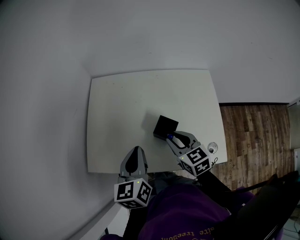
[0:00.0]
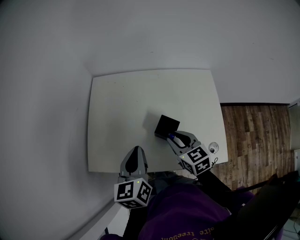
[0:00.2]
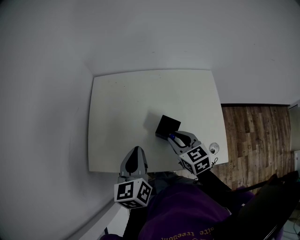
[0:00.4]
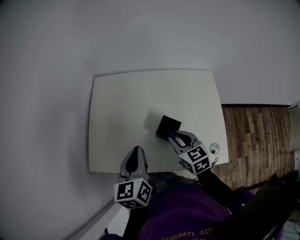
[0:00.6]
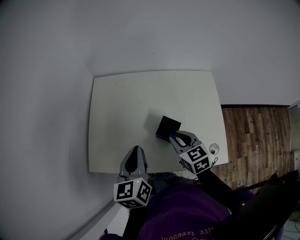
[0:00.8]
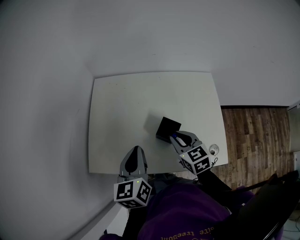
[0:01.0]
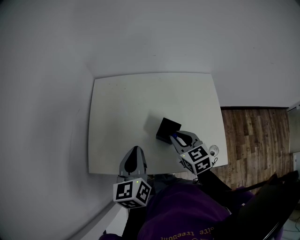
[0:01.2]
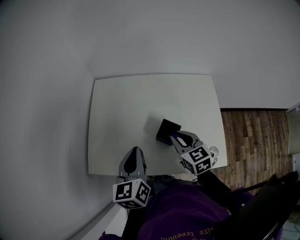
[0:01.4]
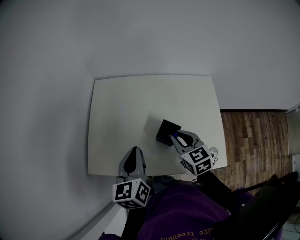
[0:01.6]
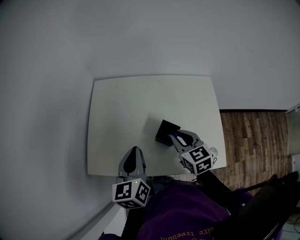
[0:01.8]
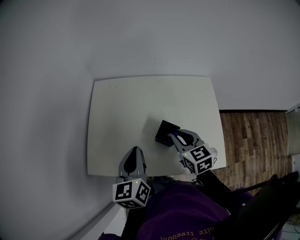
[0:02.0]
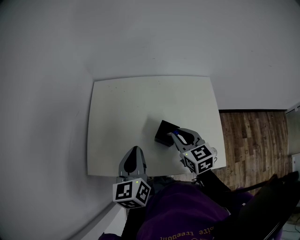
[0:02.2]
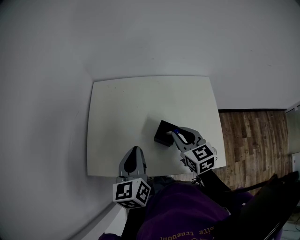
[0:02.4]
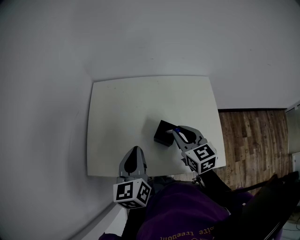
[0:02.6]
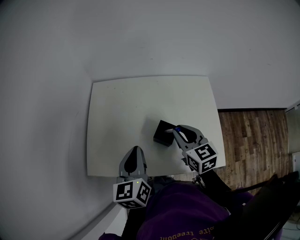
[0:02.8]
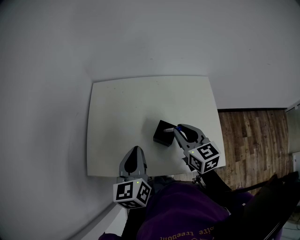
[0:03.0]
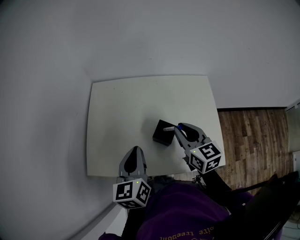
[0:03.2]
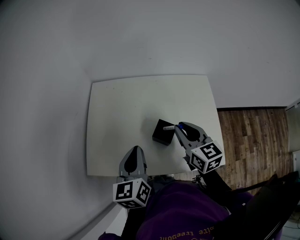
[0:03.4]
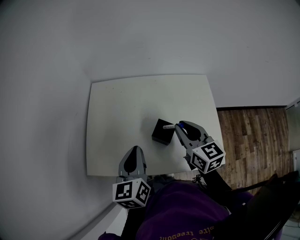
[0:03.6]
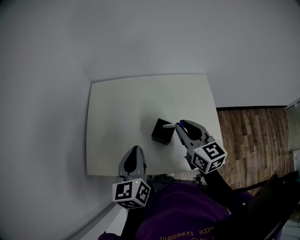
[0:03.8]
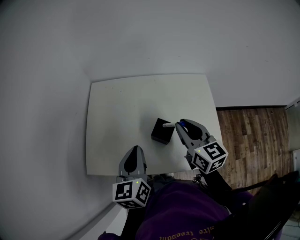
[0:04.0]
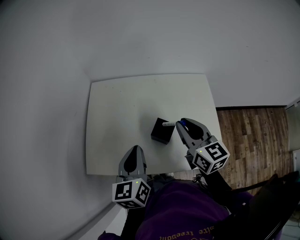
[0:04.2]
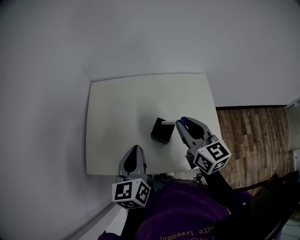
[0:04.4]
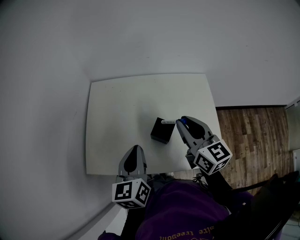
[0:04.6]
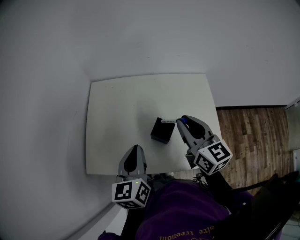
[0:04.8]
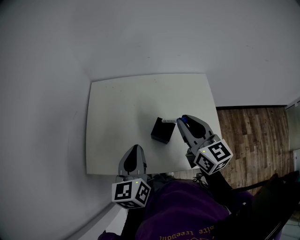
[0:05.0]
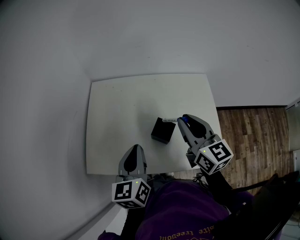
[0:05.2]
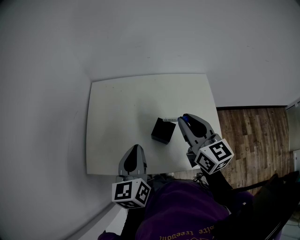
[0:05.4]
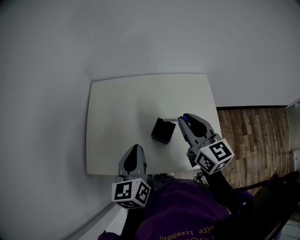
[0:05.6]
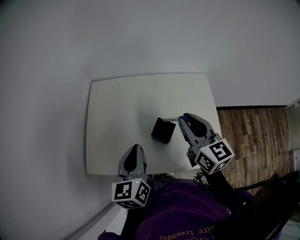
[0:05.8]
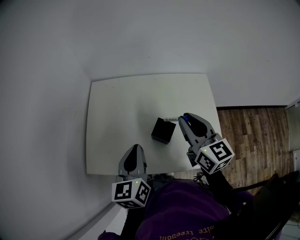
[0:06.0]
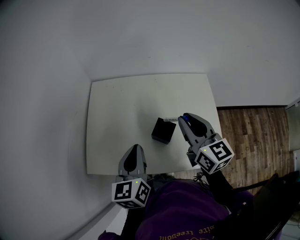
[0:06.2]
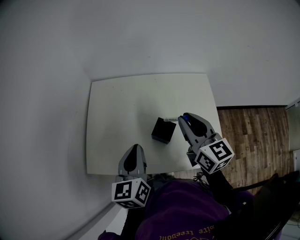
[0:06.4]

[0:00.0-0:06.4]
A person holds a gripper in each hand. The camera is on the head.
0:00.0 to 0:01.6: The grippers make only small movements.
0:01.6 to 0:03.2: The right gripper moves upward, about 5 cm.
0:03.2 to 0:04.8: The right gripper shifts some 5 cm upward.
0:04.8 to 0:06.4: Both grippers stay put.

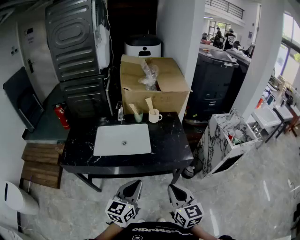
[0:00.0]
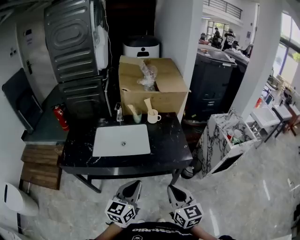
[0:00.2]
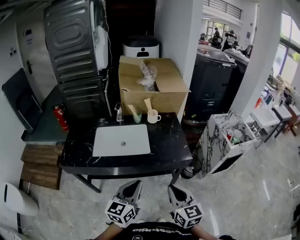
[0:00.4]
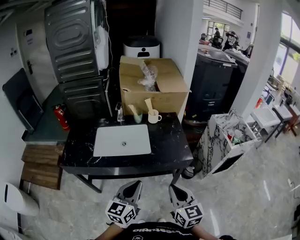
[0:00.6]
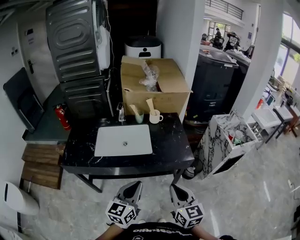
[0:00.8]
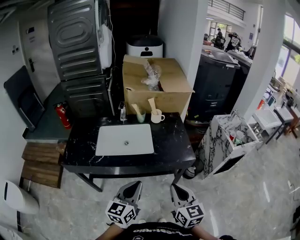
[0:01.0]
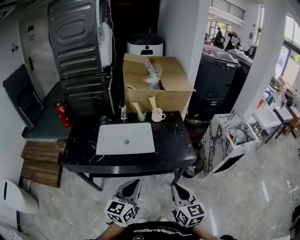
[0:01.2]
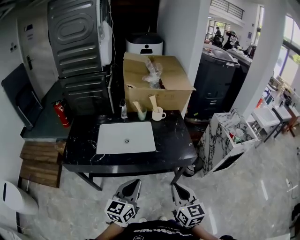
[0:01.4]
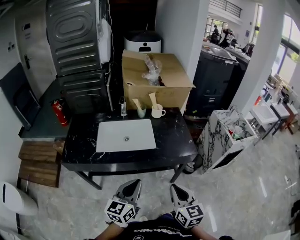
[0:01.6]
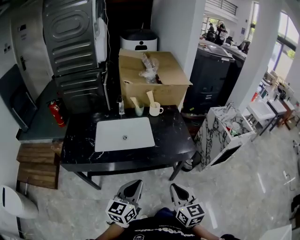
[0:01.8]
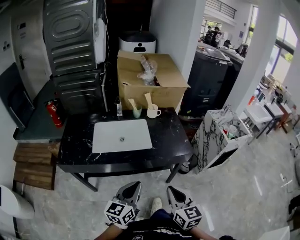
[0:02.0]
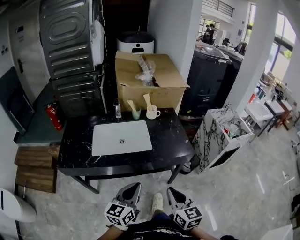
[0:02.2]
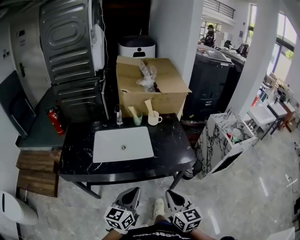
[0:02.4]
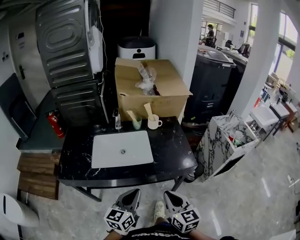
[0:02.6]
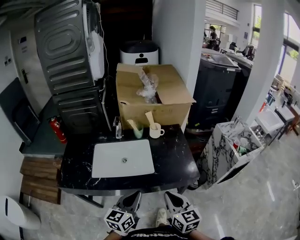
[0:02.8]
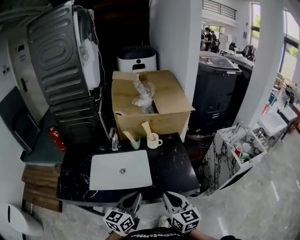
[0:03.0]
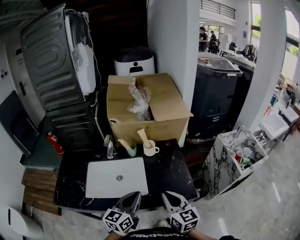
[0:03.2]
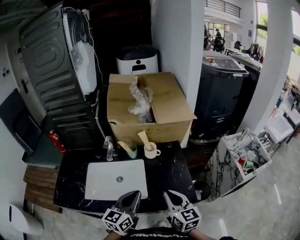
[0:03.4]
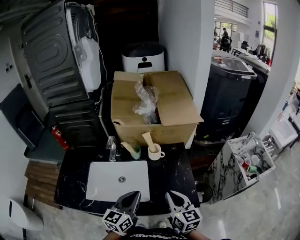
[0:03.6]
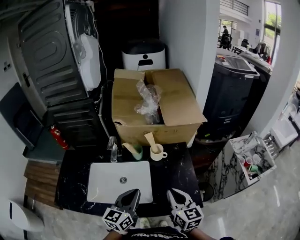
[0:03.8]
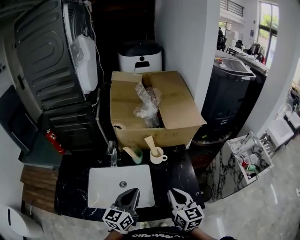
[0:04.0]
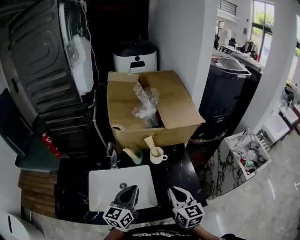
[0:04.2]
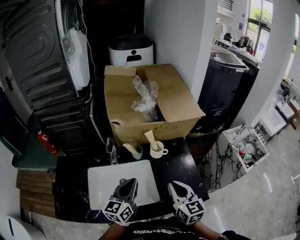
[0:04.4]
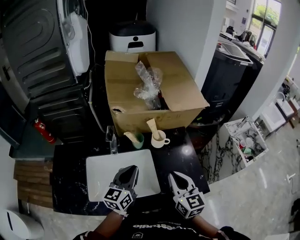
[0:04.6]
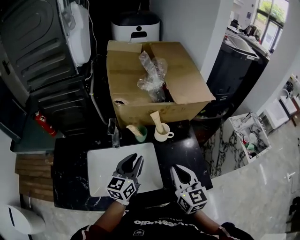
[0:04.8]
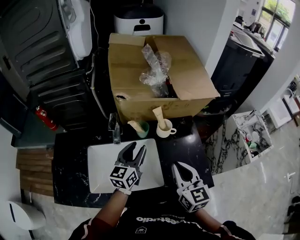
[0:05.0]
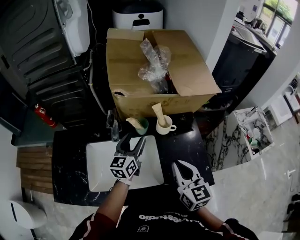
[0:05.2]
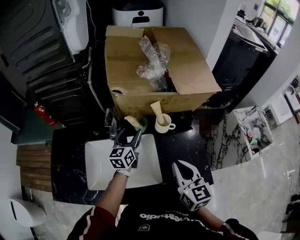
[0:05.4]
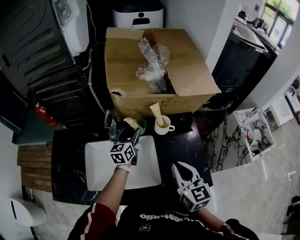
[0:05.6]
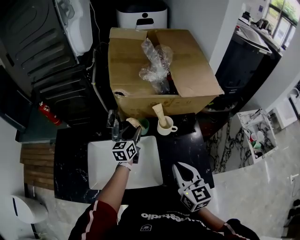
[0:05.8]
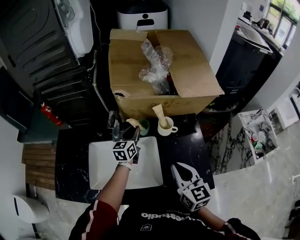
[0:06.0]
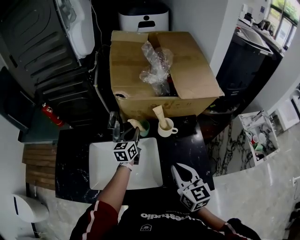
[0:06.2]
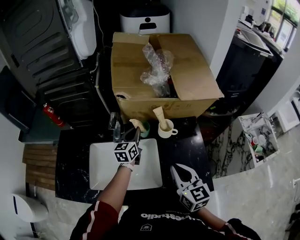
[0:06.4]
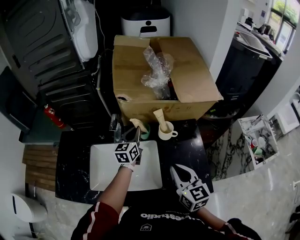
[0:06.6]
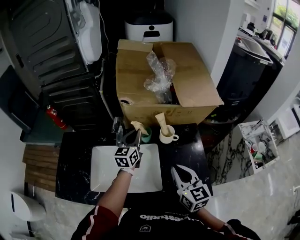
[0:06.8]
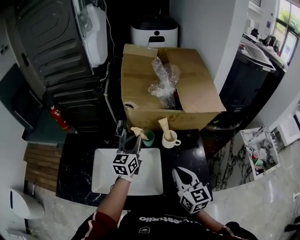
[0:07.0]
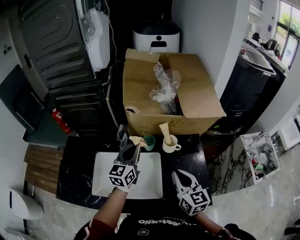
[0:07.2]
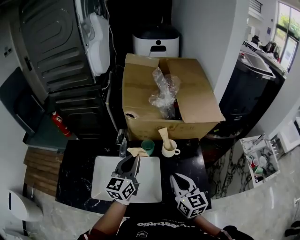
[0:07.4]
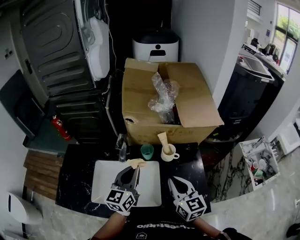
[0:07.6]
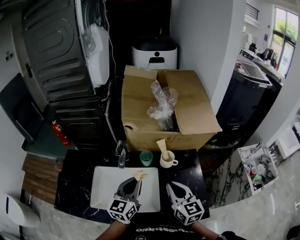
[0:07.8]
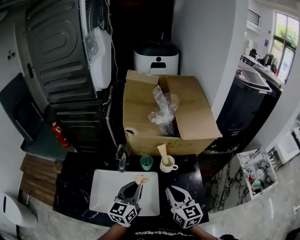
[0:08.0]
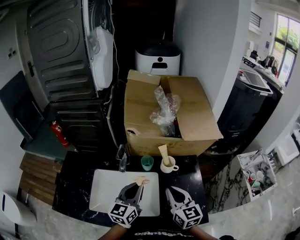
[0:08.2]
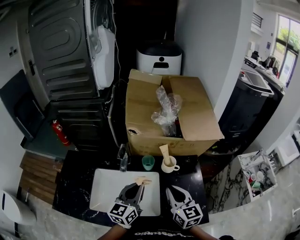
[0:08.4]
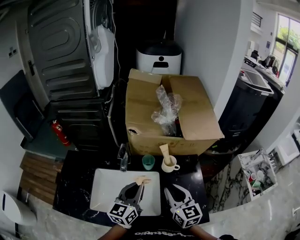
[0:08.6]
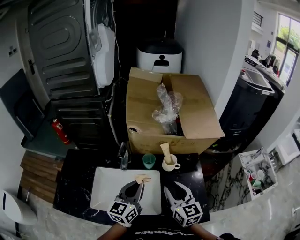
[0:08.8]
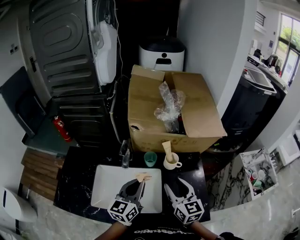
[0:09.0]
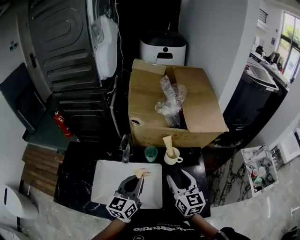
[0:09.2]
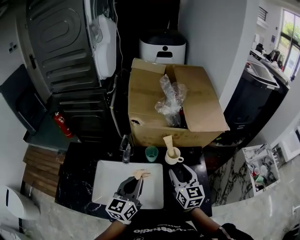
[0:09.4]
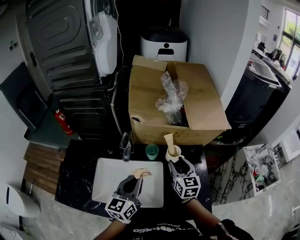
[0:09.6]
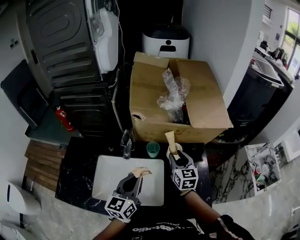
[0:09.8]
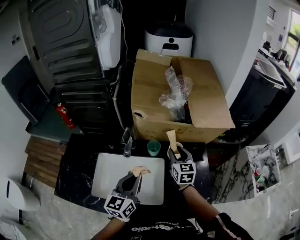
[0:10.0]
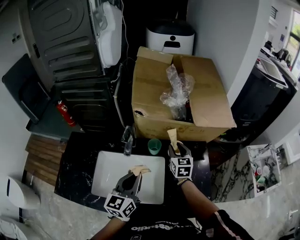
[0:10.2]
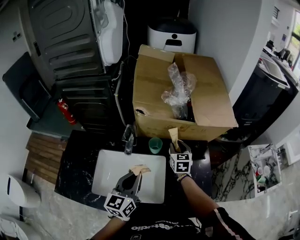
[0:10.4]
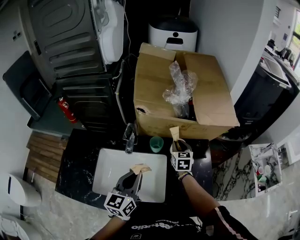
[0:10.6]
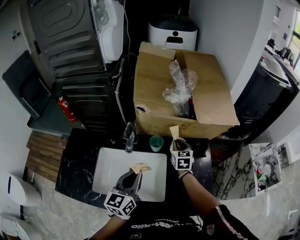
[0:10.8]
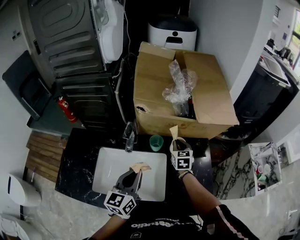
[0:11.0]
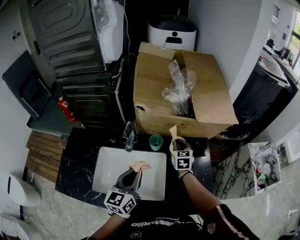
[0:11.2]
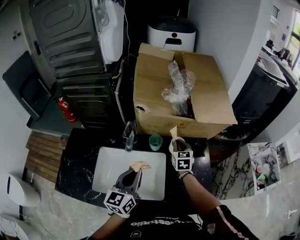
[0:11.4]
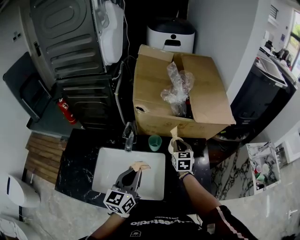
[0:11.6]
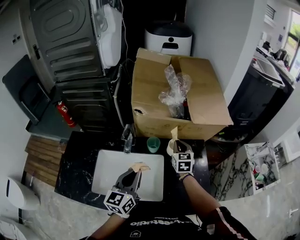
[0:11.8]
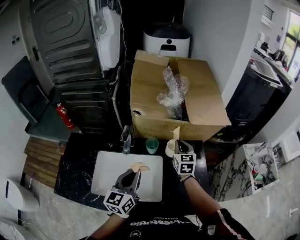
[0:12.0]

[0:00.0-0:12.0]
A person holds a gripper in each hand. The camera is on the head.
0:00.0 to 0:01.6: The left gripper is displaced to the left by approximately 5 cm.
0:01.6 to 0:03.0: Both grippers move forward, approximately 20 cm.
0:03.0 to 0:04.4: Both grippers move forward, some 20 cm.
0:04.4 to 0:06.0: The left gripper moves forward and downward, some 25 cm, and opens, then closes again.
0:06.0 to 0:07.6: The left gripper goes approximately 20 cm backward and upward.
0:07.6 to 0:09.0: The right gripper opens up.
0:09.0 to 0:10.4: The right gripper shifts about 25 cm forward and downward.
0:10.4 to 0:12.0: The right gripper heads upward, covering about 5 cm, and closes its fingers.

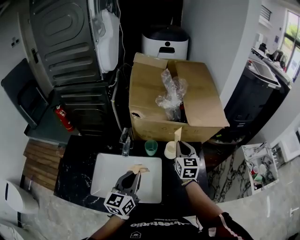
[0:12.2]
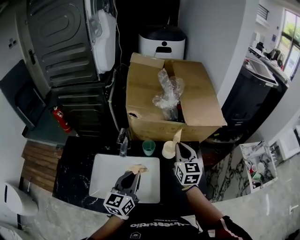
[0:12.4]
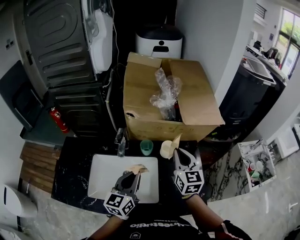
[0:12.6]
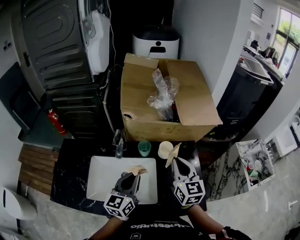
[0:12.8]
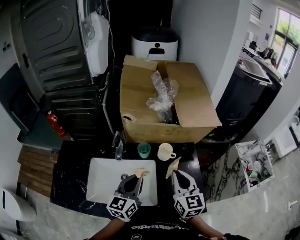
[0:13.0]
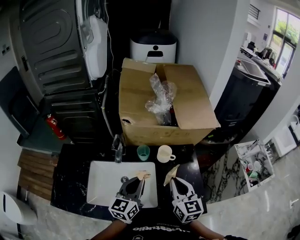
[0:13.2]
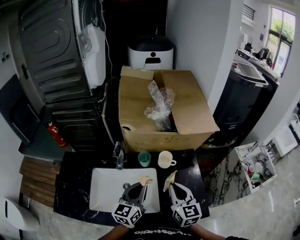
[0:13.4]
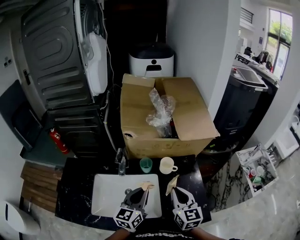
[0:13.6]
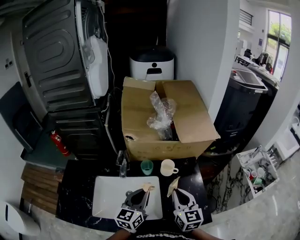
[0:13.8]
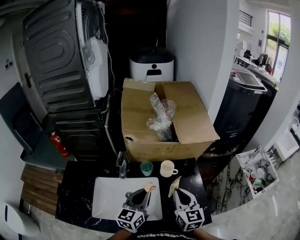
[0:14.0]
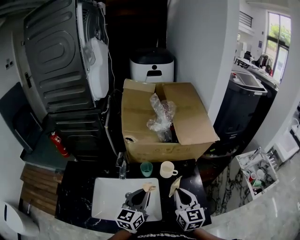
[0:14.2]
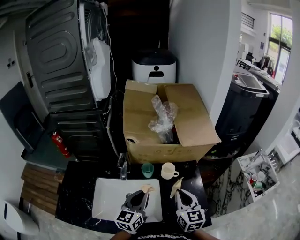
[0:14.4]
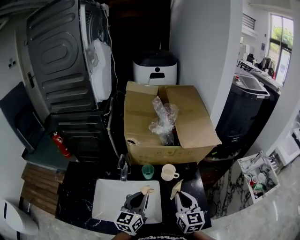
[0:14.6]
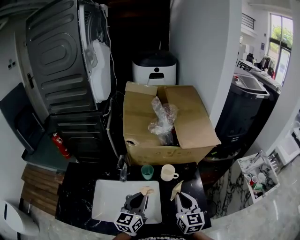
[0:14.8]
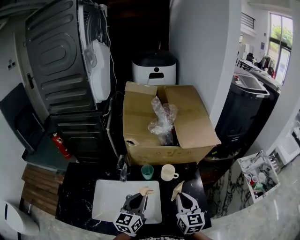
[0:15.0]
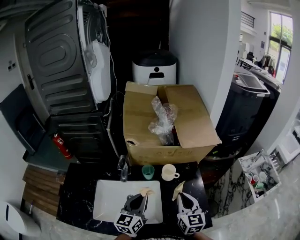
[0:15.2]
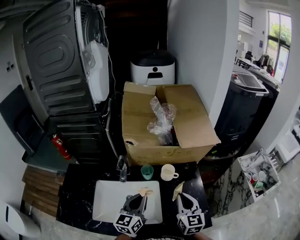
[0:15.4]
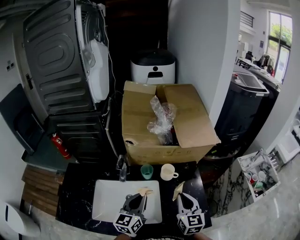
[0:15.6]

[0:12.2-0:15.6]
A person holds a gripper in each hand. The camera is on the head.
0:12.2 to 0:13.8: The right gripper is displaced backward by some 15 cm.
0:13.8 to 0:15.6: The grippers make only small movements.

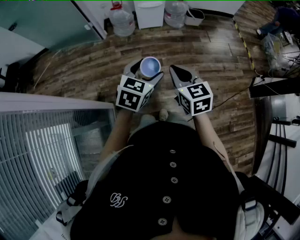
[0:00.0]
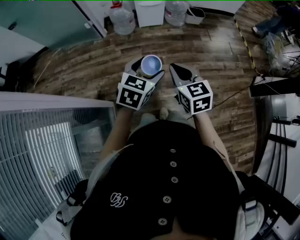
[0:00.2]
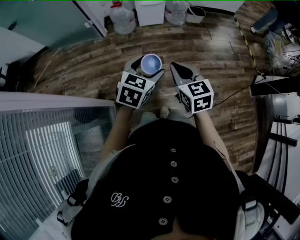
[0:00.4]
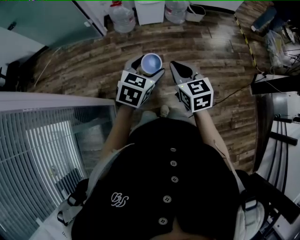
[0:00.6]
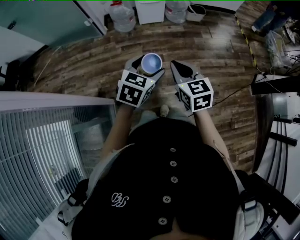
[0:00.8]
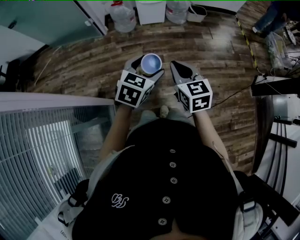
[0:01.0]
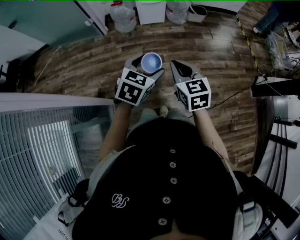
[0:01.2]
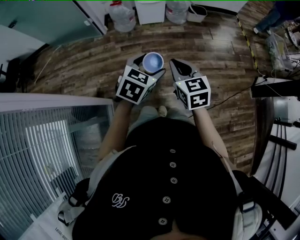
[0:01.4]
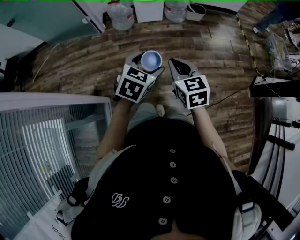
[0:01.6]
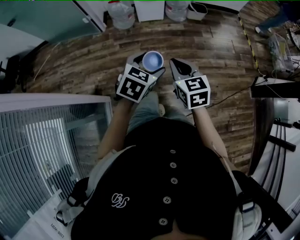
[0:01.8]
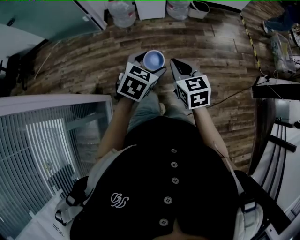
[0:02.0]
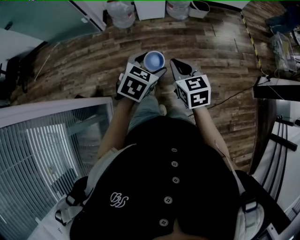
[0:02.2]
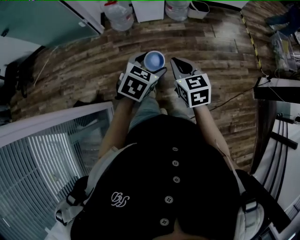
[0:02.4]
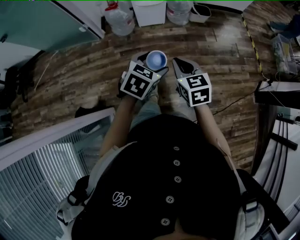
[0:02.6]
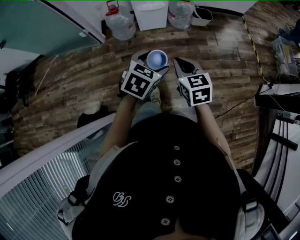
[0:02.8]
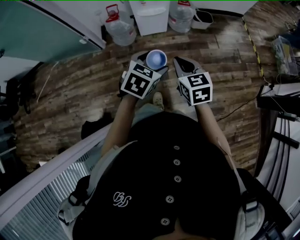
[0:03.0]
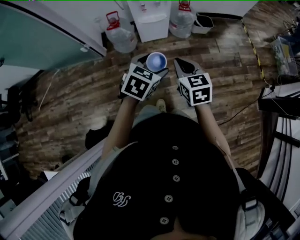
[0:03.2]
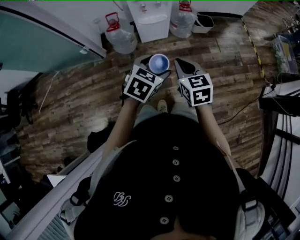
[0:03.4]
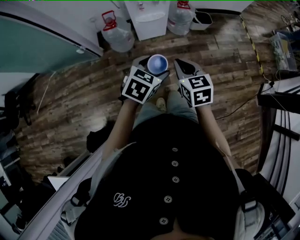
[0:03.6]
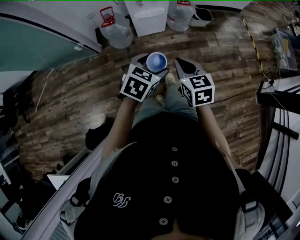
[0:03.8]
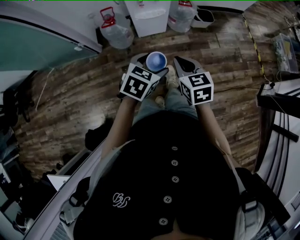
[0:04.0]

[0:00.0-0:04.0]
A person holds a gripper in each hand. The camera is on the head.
0:00.0 to 0:01.4: The grippers move only a little.
0:01.4 to 0:02.6: Both grippers travel together forward, approximately 15 cm.
0:02.6 to 0:04.0: Both grippers move forward and to the left, about 20 cm.
